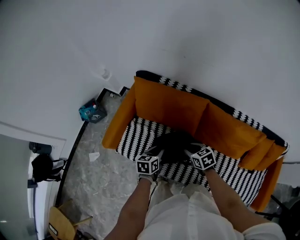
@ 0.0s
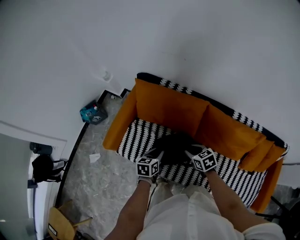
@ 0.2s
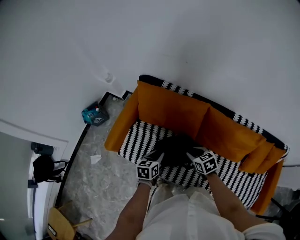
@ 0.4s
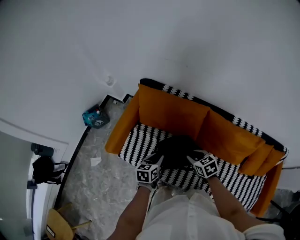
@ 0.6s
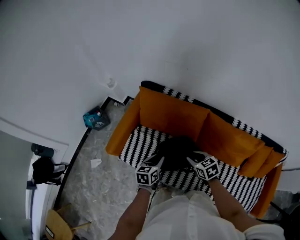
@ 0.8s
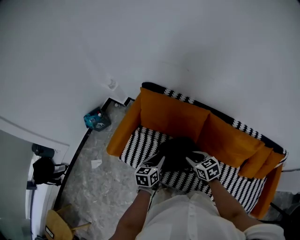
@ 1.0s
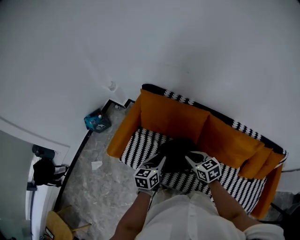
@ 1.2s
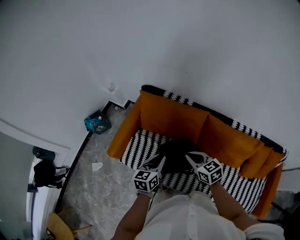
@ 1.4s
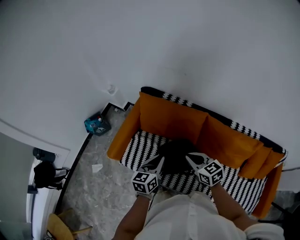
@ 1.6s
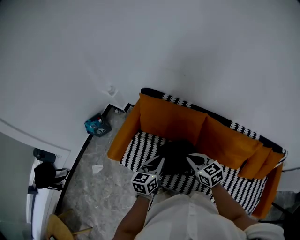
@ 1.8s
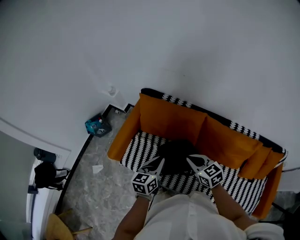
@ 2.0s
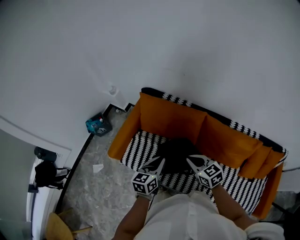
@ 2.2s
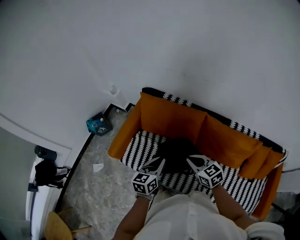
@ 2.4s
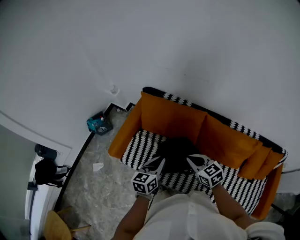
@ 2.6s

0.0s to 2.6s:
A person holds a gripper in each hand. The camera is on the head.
0.0s to 1.2s: The grippers both shift upward by about 10 cm.
1.2s to 2.6s: The right gripper shifts by roughly 5 cm. The left gripper shifts by approximately 5 cm.

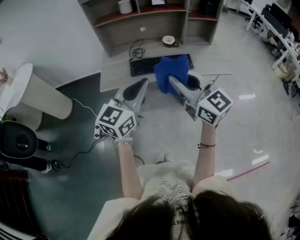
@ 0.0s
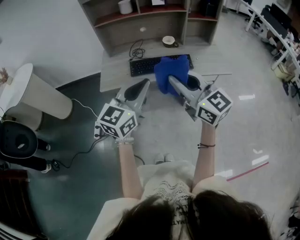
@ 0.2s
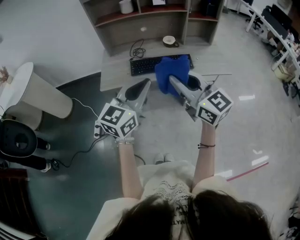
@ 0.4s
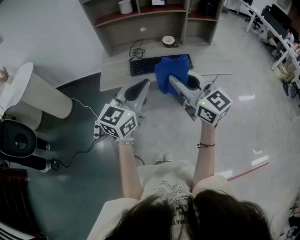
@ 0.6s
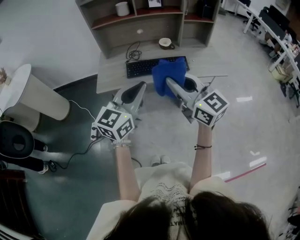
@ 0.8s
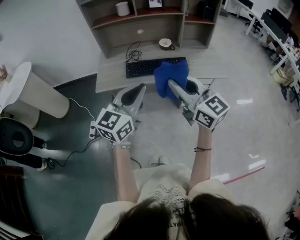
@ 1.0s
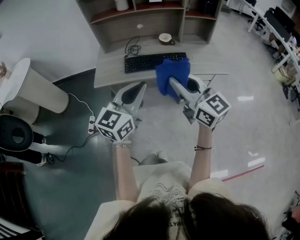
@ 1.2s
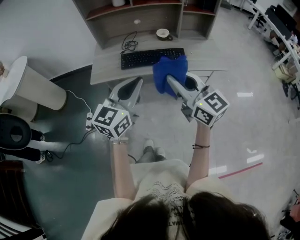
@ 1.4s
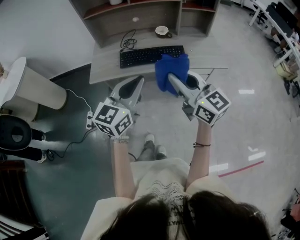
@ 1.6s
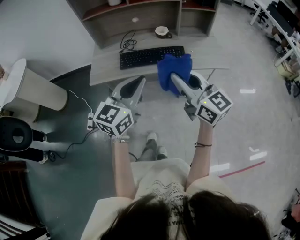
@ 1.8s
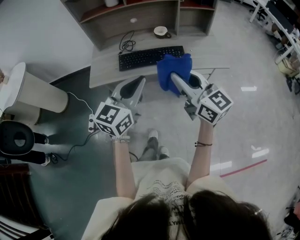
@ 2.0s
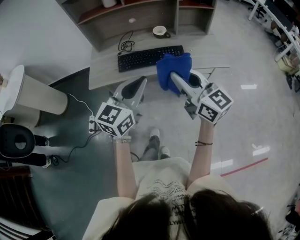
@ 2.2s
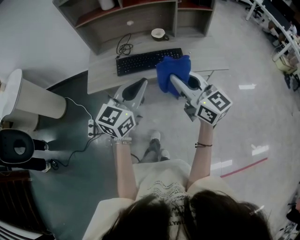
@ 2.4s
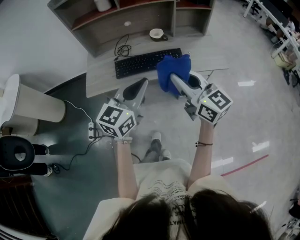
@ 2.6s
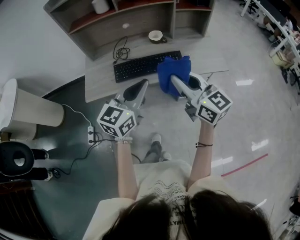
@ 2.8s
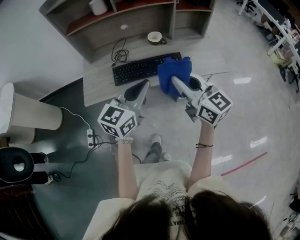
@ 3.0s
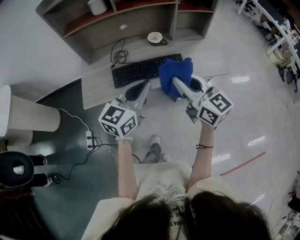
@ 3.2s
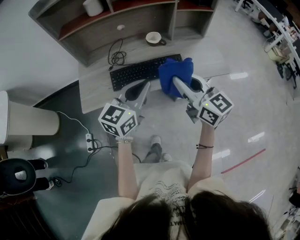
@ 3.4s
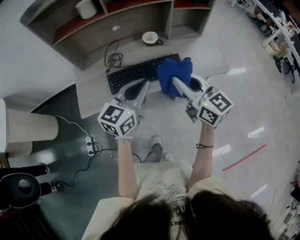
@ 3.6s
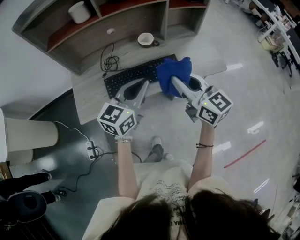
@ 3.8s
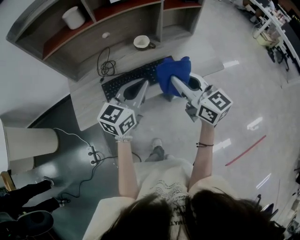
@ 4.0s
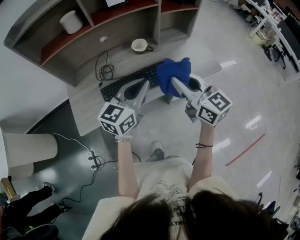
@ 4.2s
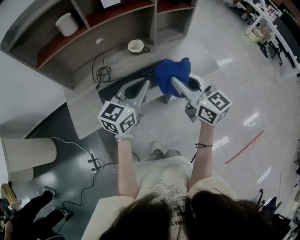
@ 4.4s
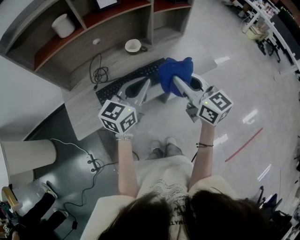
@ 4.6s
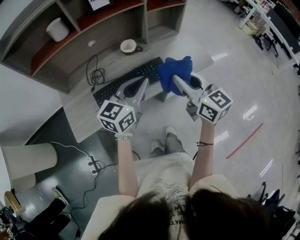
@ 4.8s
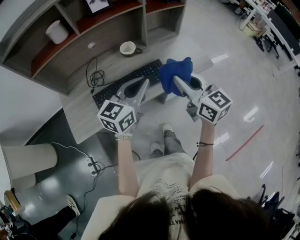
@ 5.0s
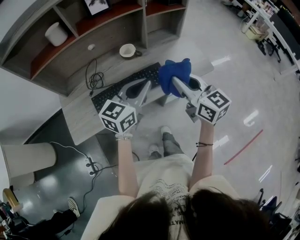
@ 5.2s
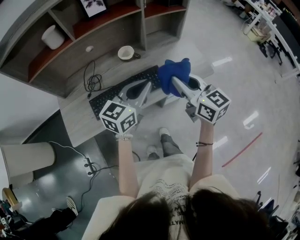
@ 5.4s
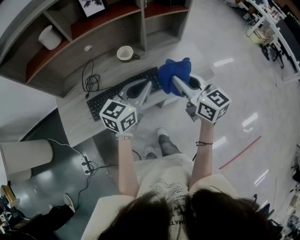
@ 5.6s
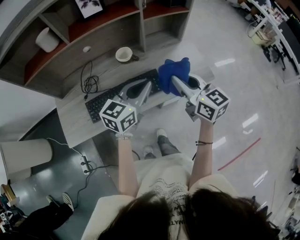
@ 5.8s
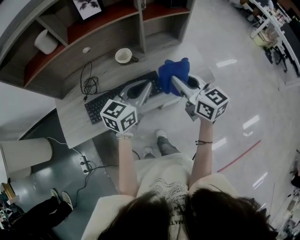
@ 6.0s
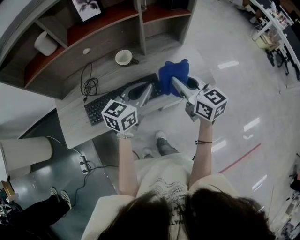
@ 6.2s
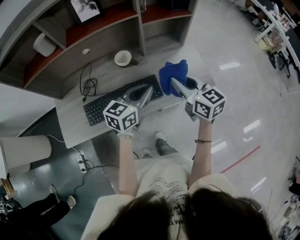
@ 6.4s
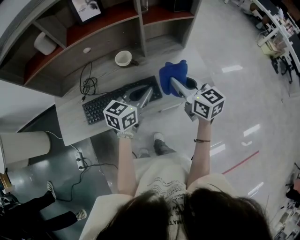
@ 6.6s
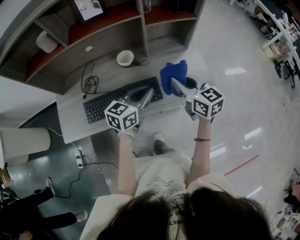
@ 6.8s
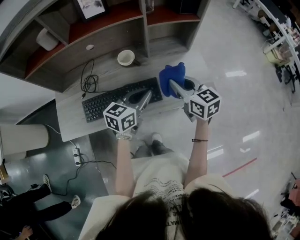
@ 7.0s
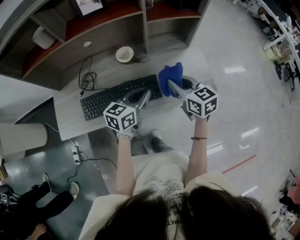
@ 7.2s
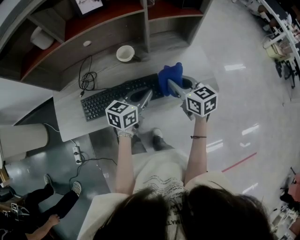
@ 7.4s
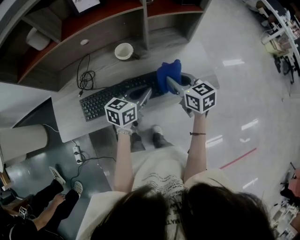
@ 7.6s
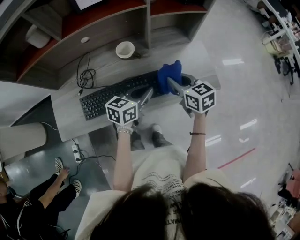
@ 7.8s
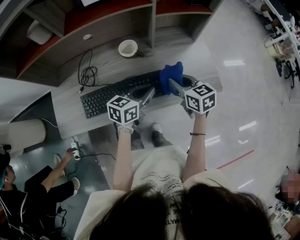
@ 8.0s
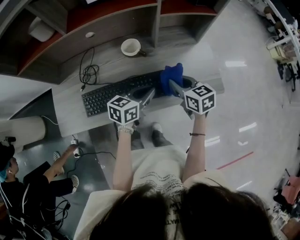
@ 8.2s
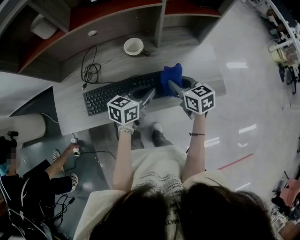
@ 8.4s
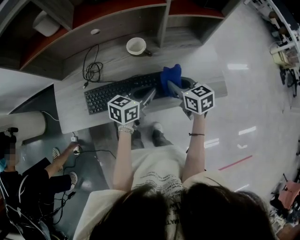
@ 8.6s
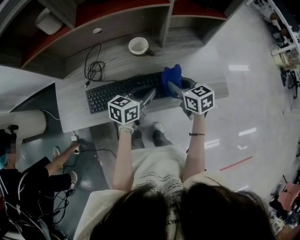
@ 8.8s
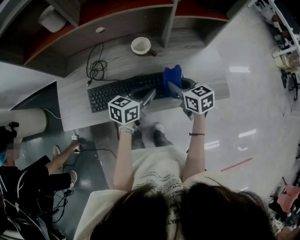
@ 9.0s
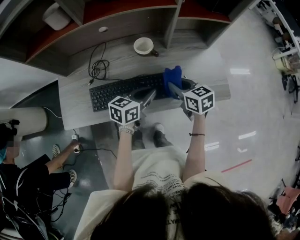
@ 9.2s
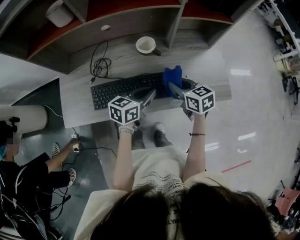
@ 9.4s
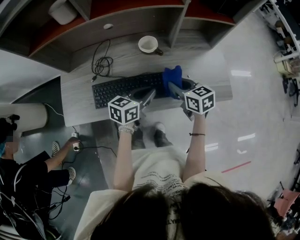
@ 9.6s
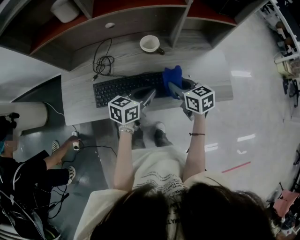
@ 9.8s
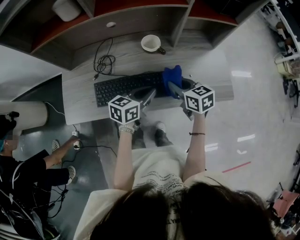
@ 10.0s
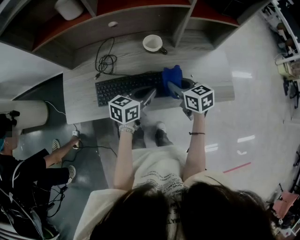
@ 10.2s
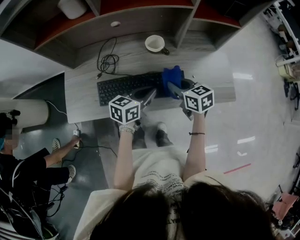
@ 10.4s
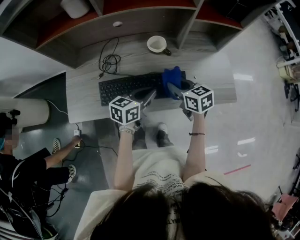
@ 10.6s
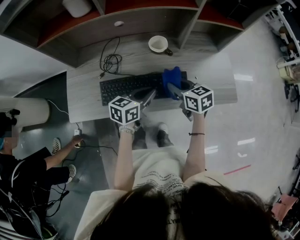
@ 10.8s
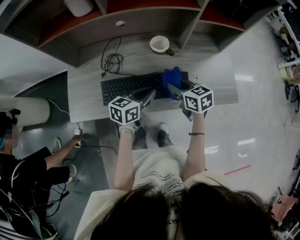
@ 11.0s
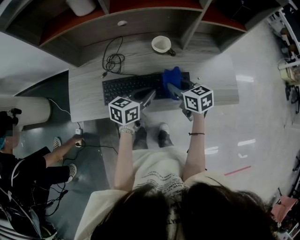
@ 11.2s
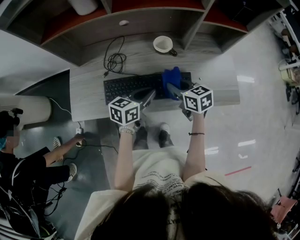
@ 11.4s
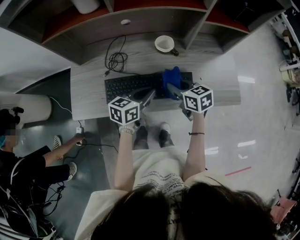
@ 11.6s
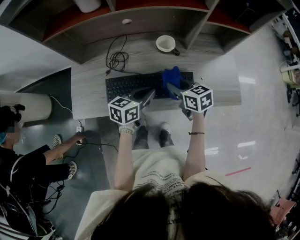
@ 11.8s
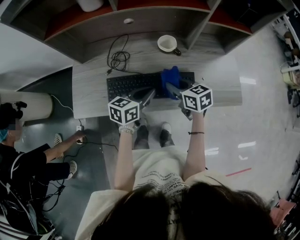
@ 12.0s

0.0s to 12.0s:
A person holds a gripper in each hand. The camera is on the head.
0.0s to 1.6s: The two grippers go roughly 5 cm to the right.
1.6s to 3.0s: Both grippers move forward, roughly 10 cm.
3.0s to 4.4s: The two grippers go roughly 10 cm forward.
4.4s to 6.0s: Both grippers move forward and to the right, about 15 cm.
6.0s to 7.6s: The right gripper moves downward and forward, about 15 cm, while the left gripper shifts about 10 cm downward.
7.6s to 9.0s: The right gripper travels to the left and downward by approximately 10 cm. The left gripper ends up roughly 5 cm from where it was.
9.0s to 10.4s: The grippers both shift to the left by some 5 cm.
10.4s to 12.0s: The two grippers go about 5 cm to the left.

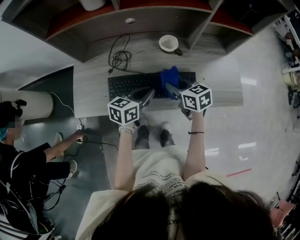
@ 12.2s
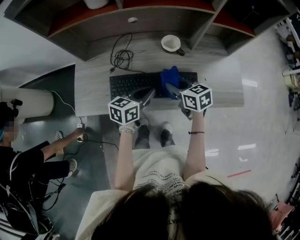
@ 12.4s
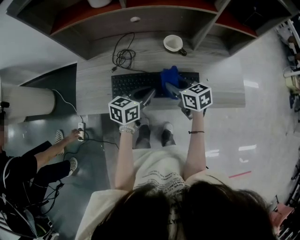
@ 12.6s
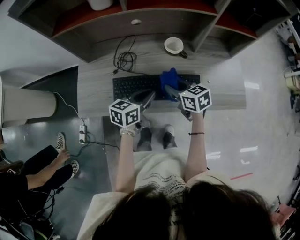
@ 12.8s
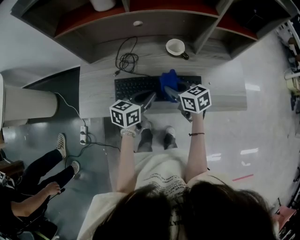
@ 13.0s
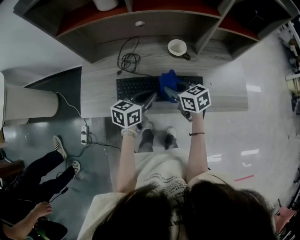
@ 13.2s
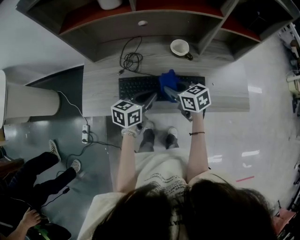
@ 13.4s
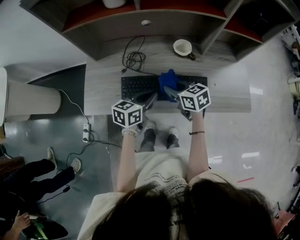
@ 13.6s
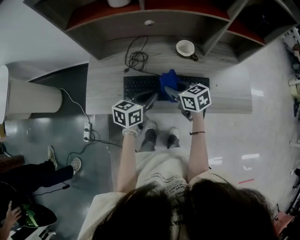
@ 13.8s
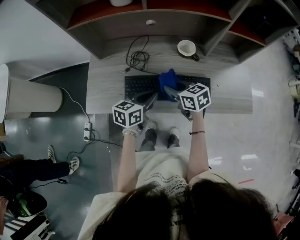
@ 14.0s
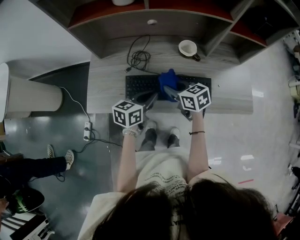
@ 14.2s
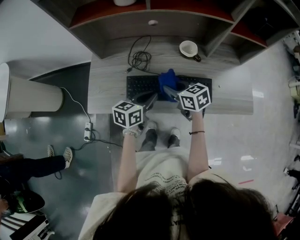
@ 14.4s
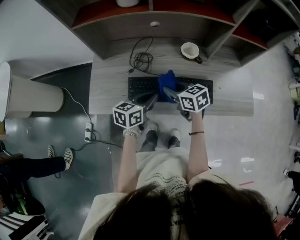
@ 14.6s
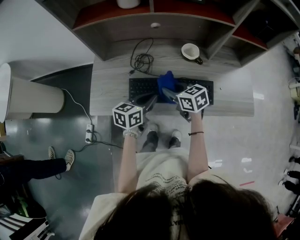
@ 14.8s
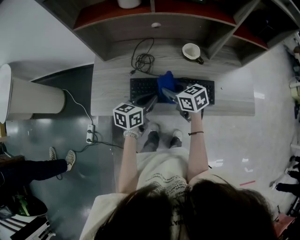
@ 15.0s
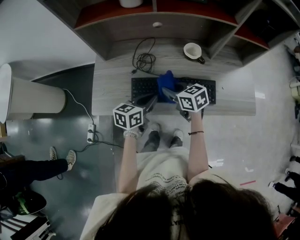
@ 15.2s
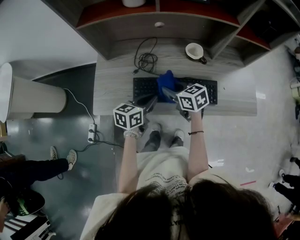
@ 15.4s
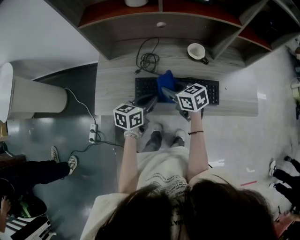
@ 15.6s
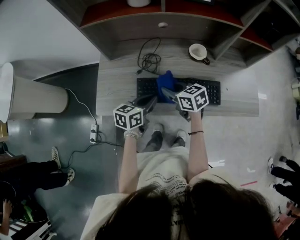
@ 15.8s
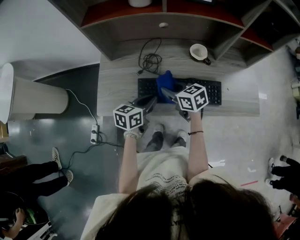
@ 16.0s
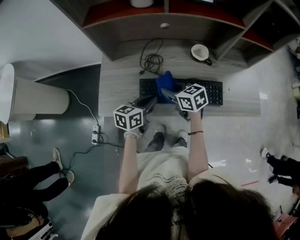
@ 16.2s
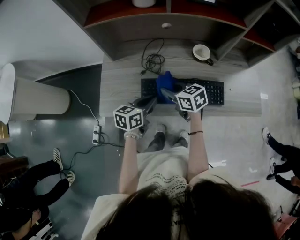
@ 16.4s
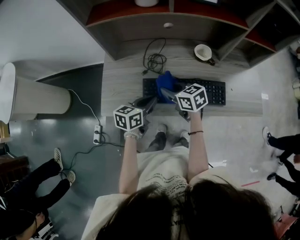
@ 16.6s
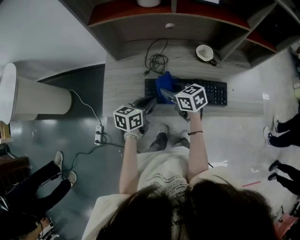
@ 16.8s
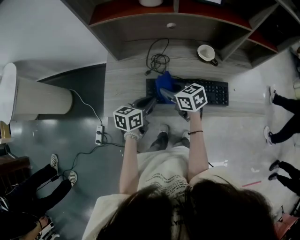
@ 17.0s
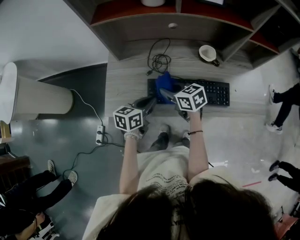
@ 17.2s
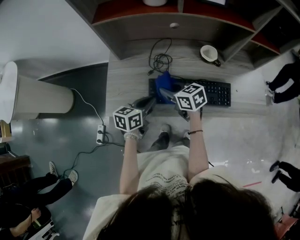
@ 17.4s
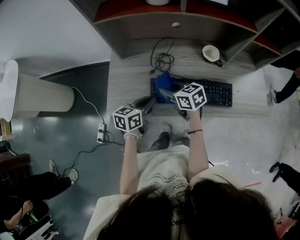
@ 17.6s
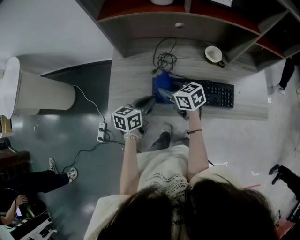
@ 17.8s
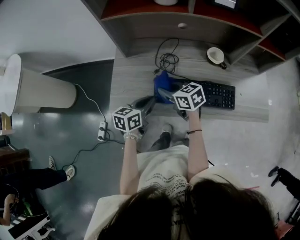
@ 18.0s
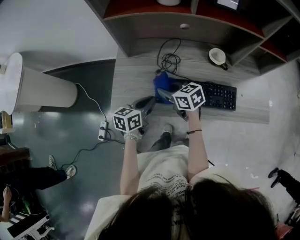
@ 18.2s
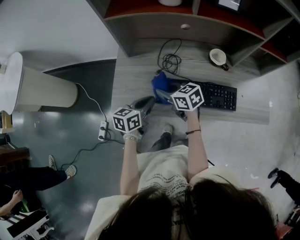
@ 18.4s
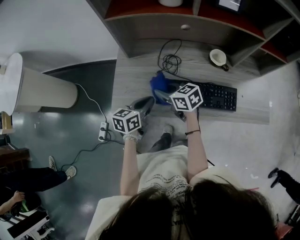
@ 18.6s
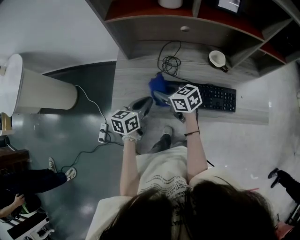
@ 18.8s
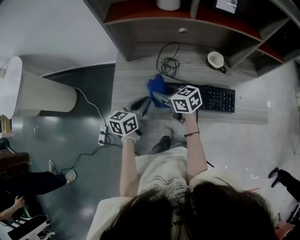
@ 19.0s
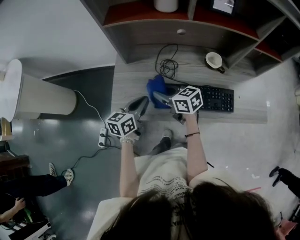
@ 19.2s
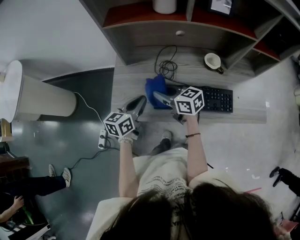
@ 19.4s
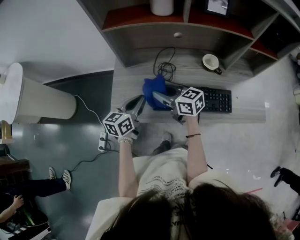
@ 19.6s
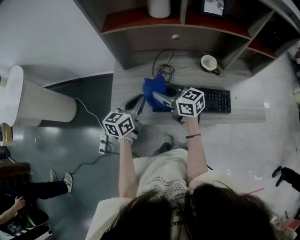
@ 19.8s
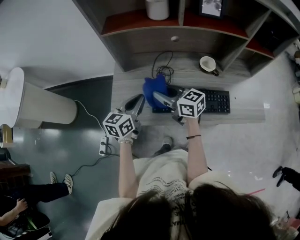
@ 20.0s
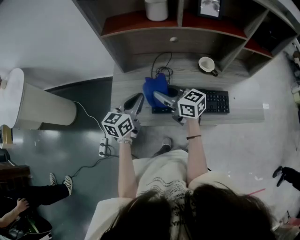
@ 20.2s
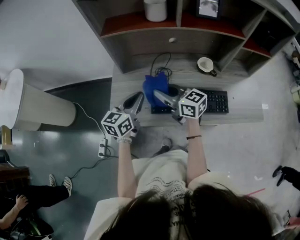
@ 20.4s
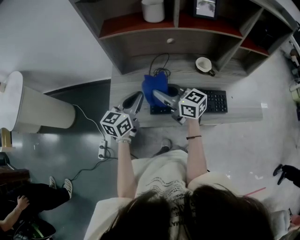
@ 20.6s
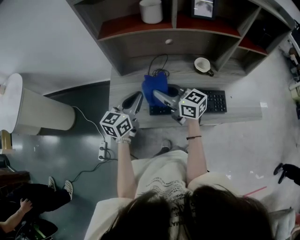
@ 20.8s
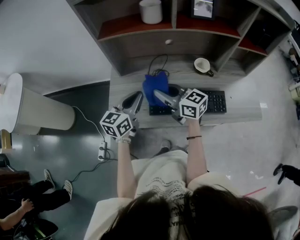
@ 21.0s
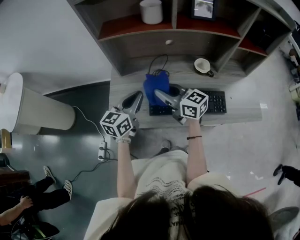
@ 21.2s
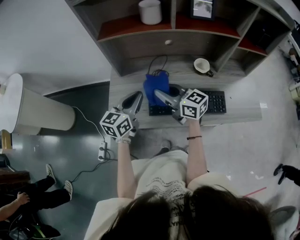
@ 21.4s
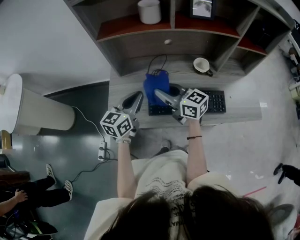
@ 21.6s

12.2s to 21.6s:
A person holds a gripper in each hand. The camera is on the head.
12.2s to 13.8s: The grippers both shift to the left by about 5 cm.
13.8s to 15.4s: Both grippers move to the left, some 5 cm.
15.4s to 17.0s: Both grippers travel together to the left, approximately 5 cm.
17.0s to 18.4s: Both grippers travel together to the left, roughly 5 cm.
18.4s to 20.0s: The grippers both shift upward by approximately 10 cm. The right gripper changes its angle by approximately 20 degrees.
20.0s to 21.6s: The grippers stay close to where they were, moving slightly.
